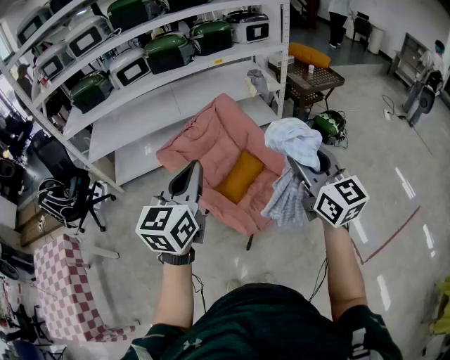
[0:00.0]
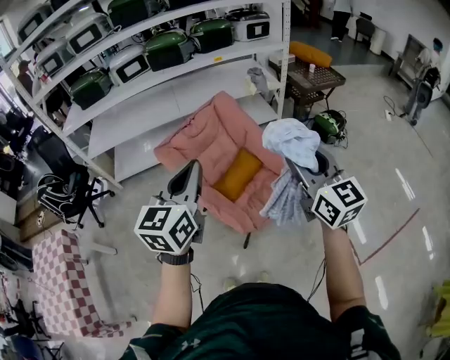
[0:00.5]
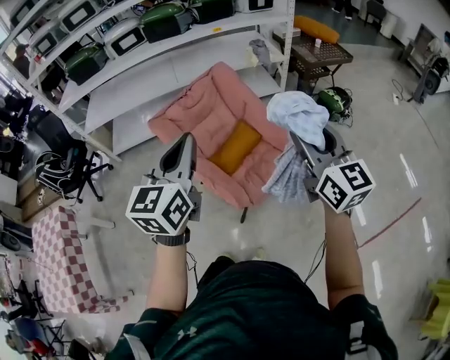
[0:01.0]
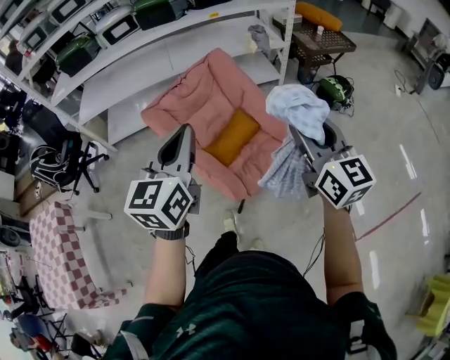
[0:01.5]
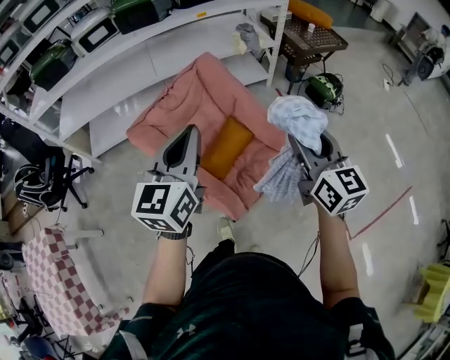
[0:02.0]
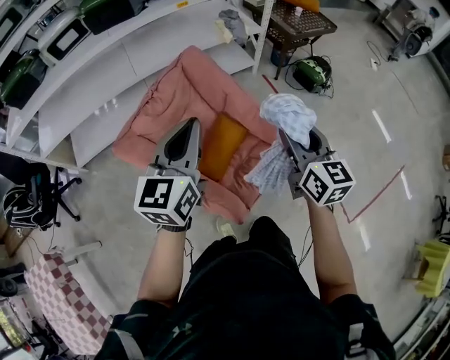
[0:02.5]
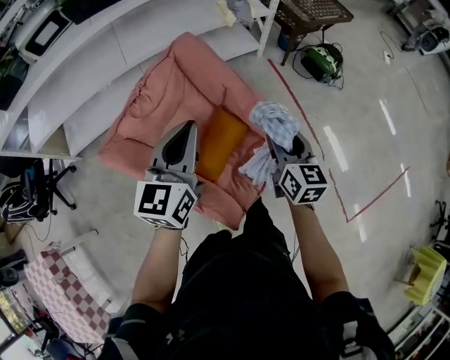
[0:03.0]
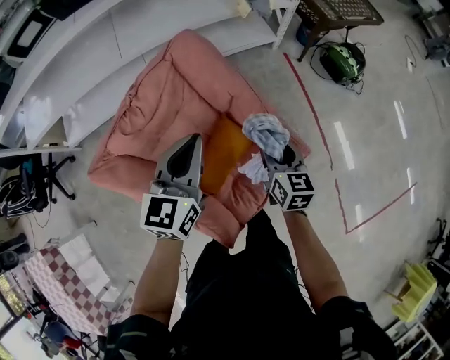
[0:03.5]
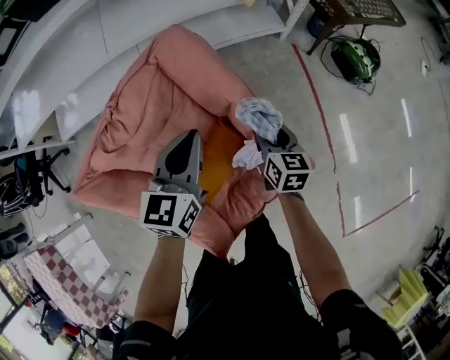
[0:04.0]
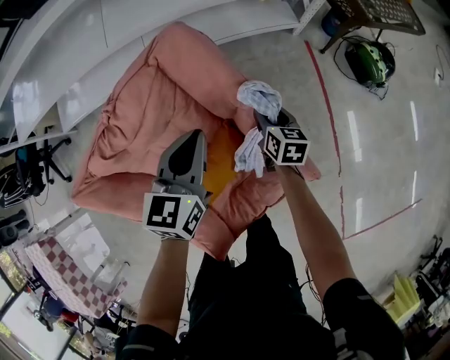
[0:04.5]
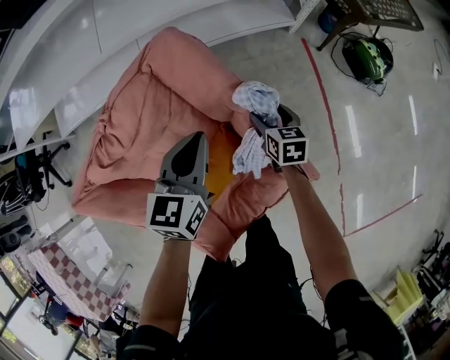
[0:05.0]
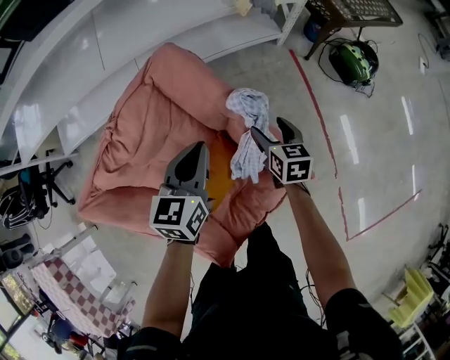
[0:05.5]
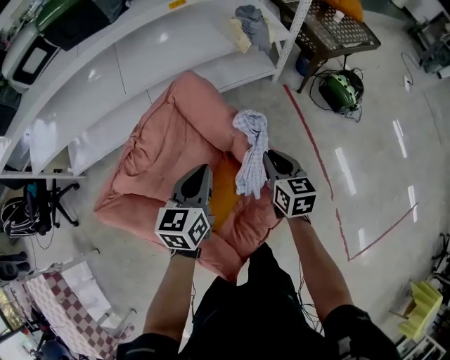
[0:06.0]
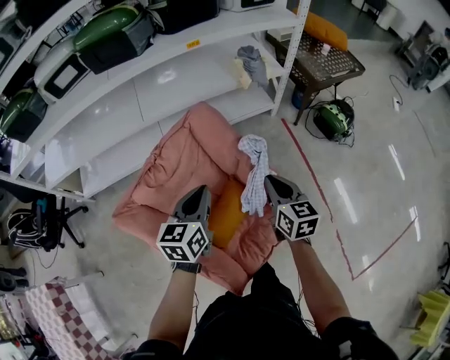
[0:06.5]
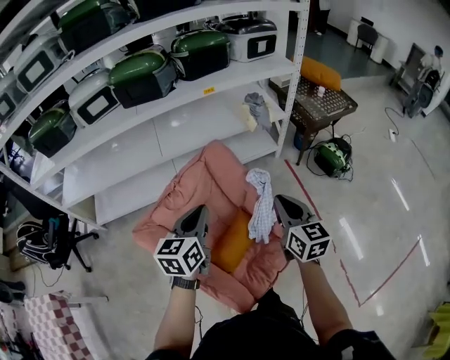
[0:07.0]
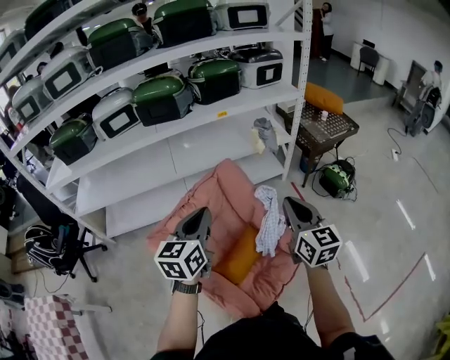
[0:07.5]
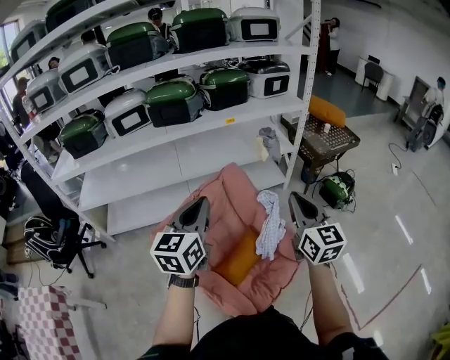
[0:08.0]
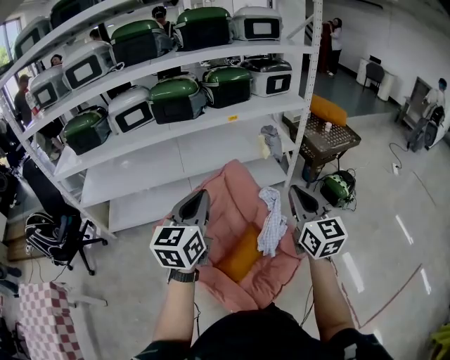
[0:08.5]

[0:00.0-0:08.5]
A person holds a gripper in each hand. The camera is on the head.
0:00.0 to 0:02.0: Both grippers travel together forward and downward, roughly 15 cm.
0:02.0 to 0:04.0: The left gripper goes approximately 50 cm forward and downward. The right gripper goes about 60 cm downward and forward, and changes its angle by roughly 30 degrees.
0:04.0 to 0:06.5: The right gripper travels upward and backward by approximately 20 cm, and closes up. The left gripper heads backward, upward and to the left, covering about 15 cm.
0:06.5 to 0:08.5: Both grippers travel together upward and backward, approximately 30 cm. The left gripper rotates about 20 degrees, while the right gripper rotates approximately 30 degrees.

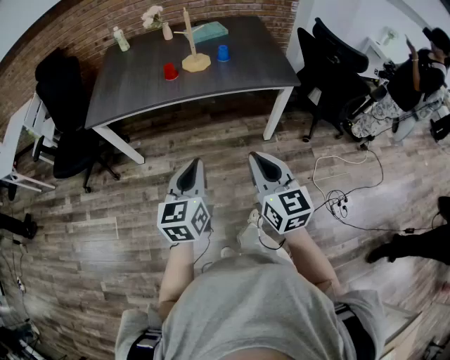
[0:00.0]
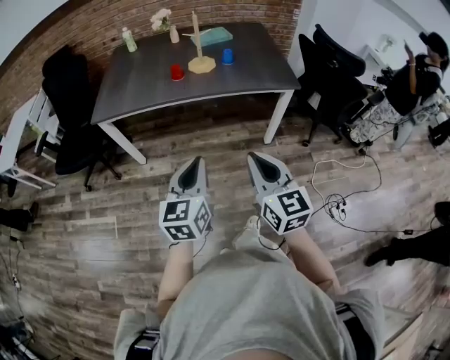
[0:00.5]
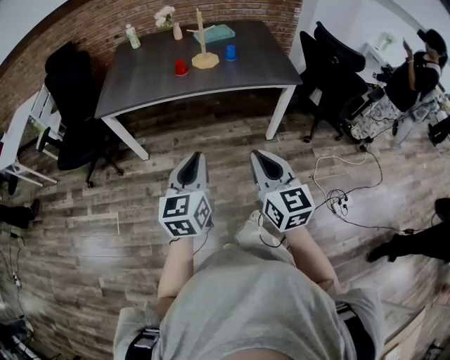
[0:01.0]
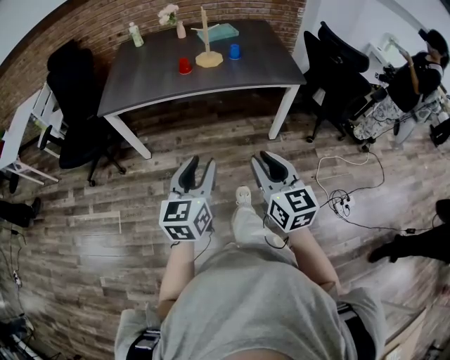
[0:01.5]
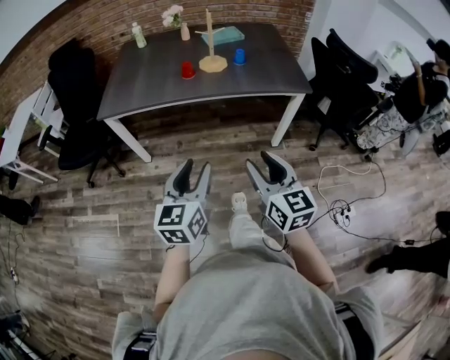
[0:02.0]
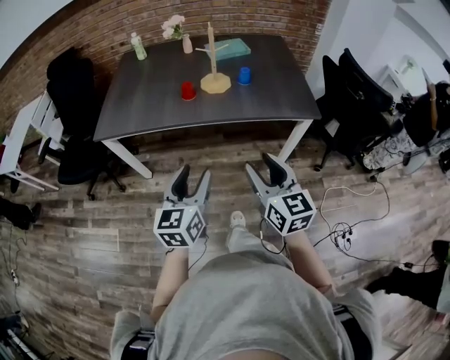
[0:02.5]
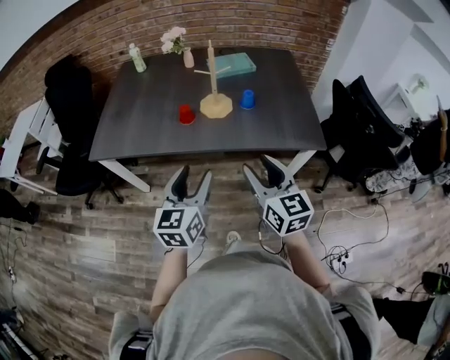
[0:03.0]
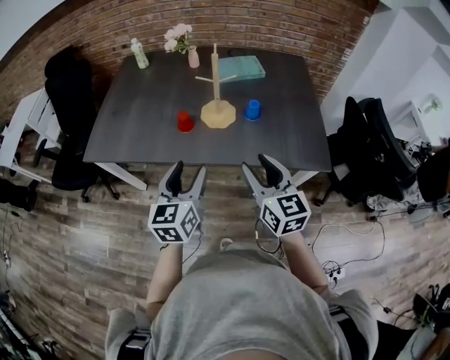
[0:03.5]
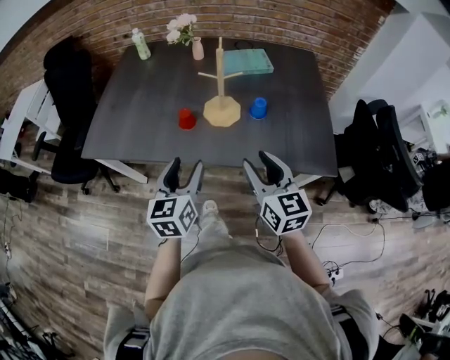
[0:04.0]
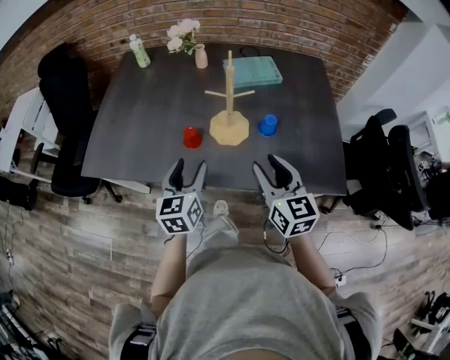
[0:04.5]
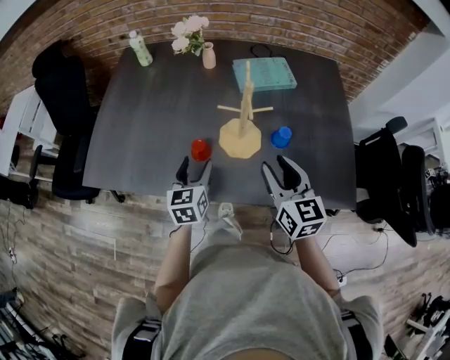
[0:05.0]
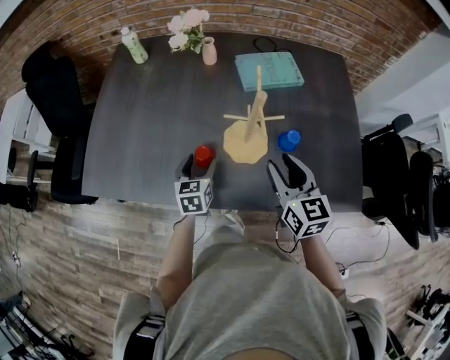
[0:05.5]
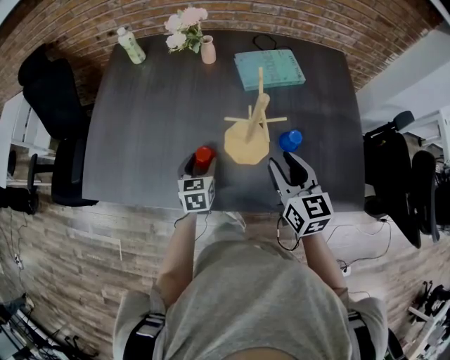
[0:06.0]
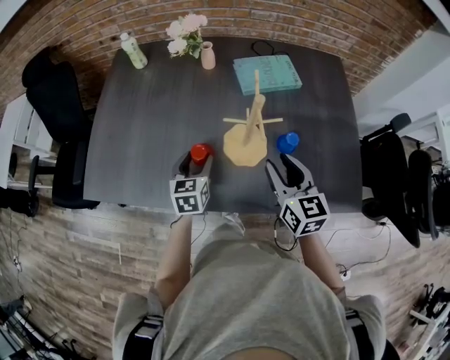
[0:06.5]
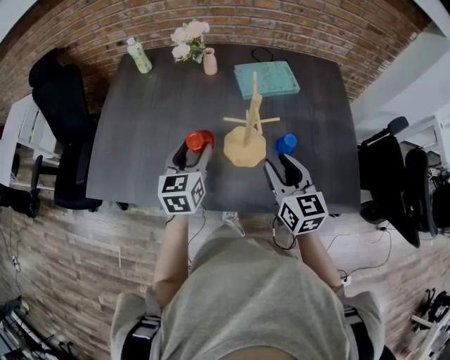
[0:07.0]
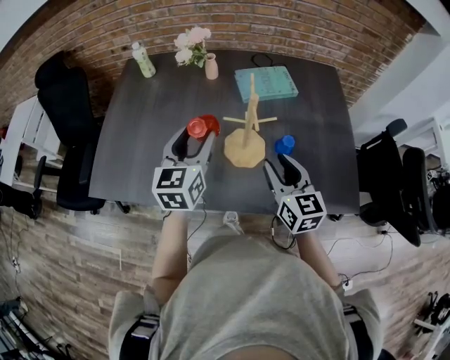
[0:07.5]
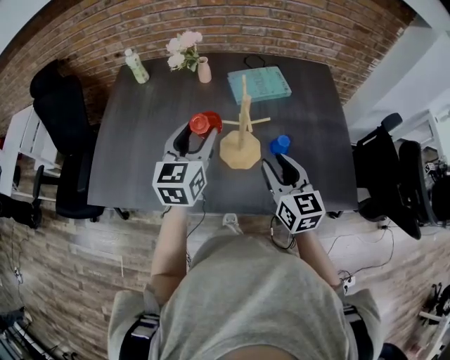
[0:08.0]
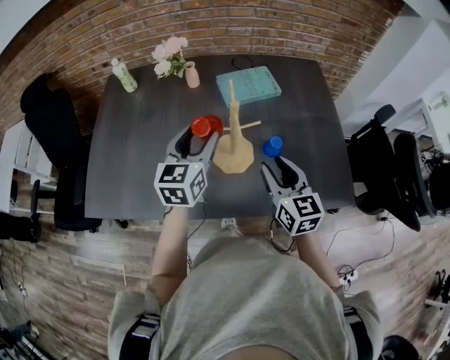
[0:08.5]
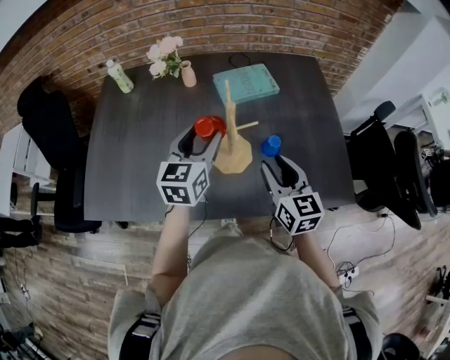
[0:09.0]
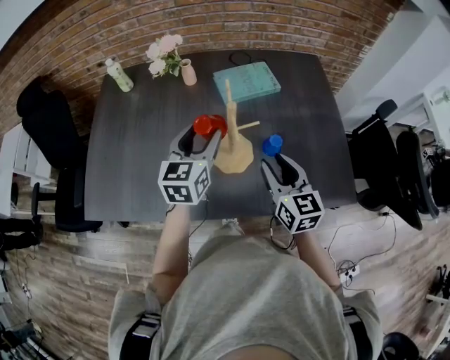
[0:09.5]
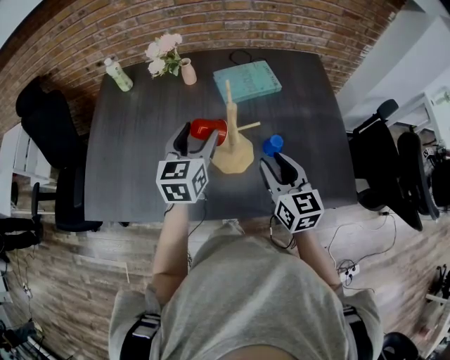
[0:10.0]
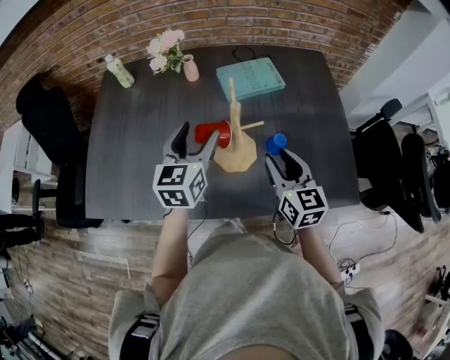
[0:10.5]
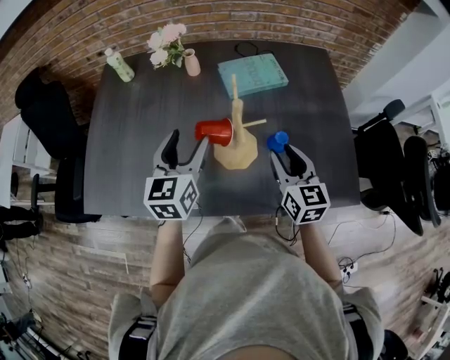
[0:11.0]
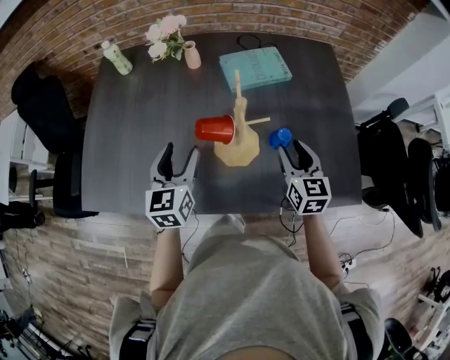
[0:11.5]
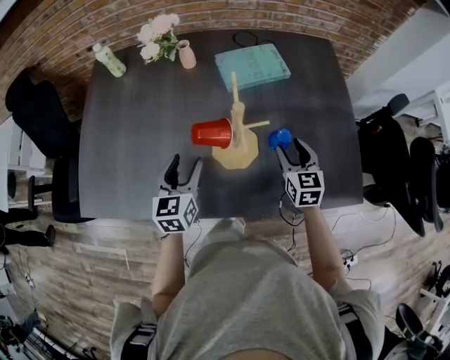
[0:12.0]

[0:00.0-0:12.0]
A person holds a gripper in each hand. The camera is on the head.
0:00.0 to 0:02.0: The left gripper goes roughly 5 cm to the left, and opens its fingers, while the right gripper opens up.
0:02.0 to 0:04.0: The pair of grippers is taken forward, about 40 cm.
0:04.0 to 0:06.0: The left gripper heads forward and downward, covering approximately 35 cm, and changes its angle by approximately 20 degrees. Meanwhile the right gripper is displaced forward by some 20 cm.
0:06.0 to 0:08.0: The left gripper moves upward, some 25 cm, and changes its angle by approximately 30 degrees.
0:08.0 to 0:10.0: The left gripper shifts by roughly 5 cm.
0:10.0 to 0:12.0: The left gripper moves downward and to the left, about 15 cm, while the right gripper travels downward, forward and to the right by roughly 15 cm.

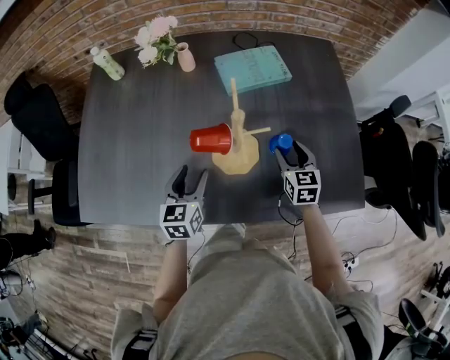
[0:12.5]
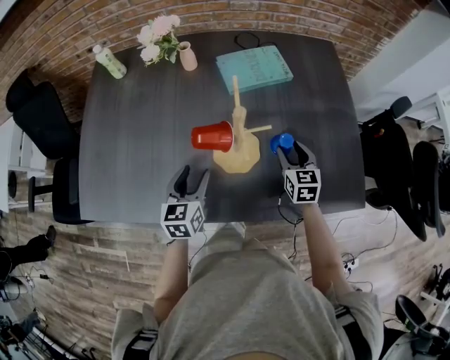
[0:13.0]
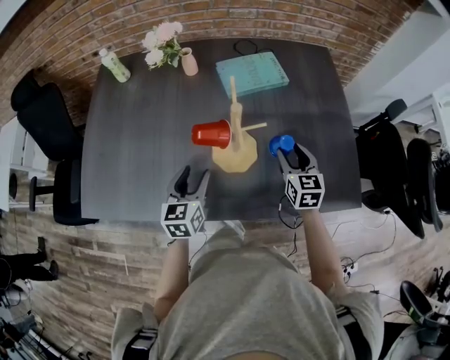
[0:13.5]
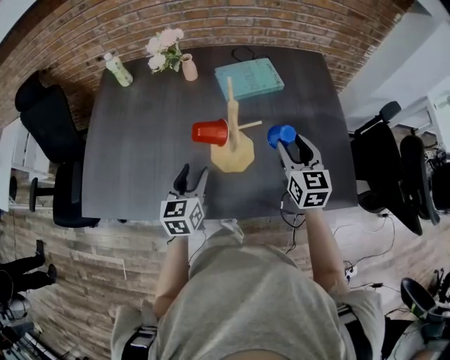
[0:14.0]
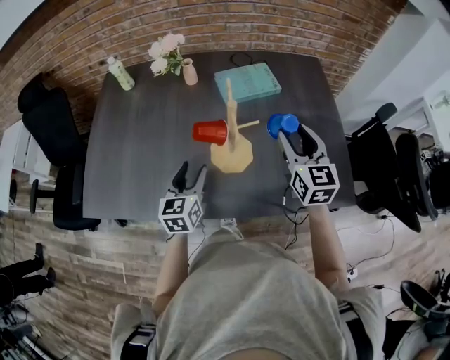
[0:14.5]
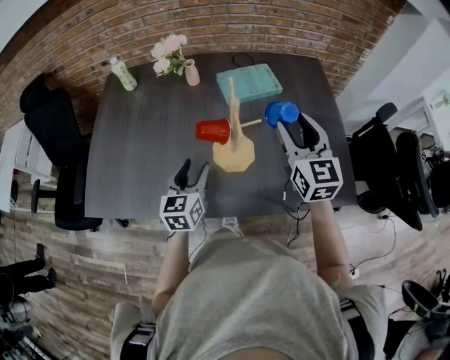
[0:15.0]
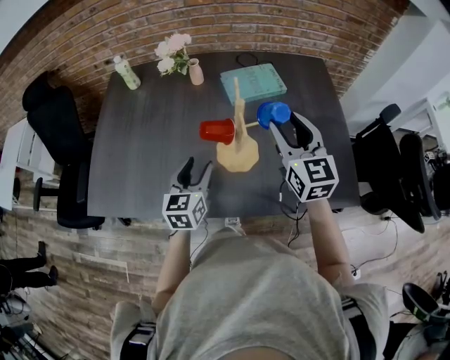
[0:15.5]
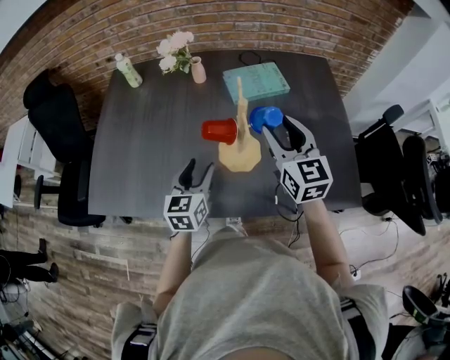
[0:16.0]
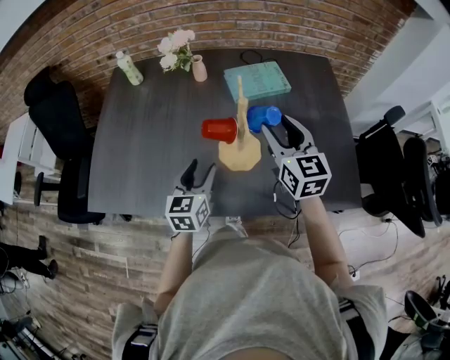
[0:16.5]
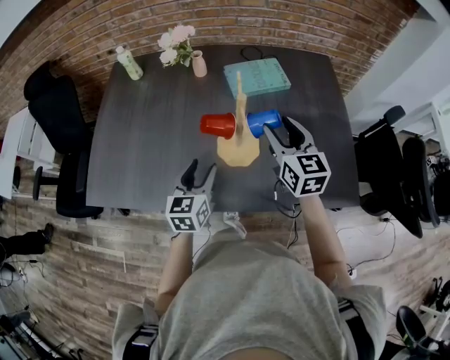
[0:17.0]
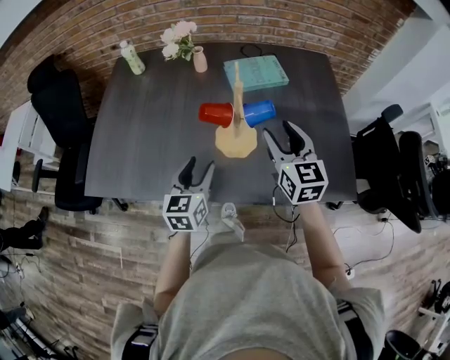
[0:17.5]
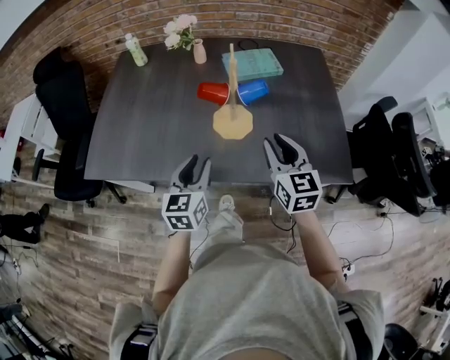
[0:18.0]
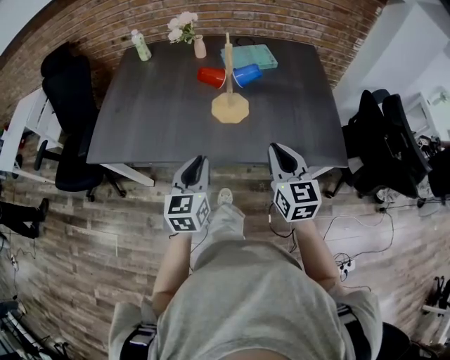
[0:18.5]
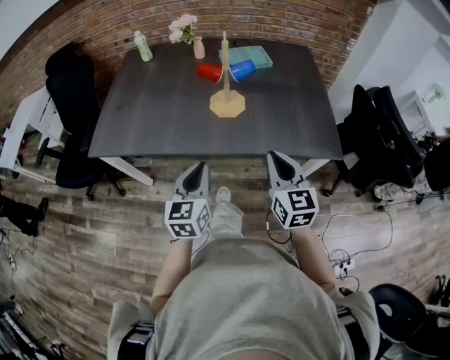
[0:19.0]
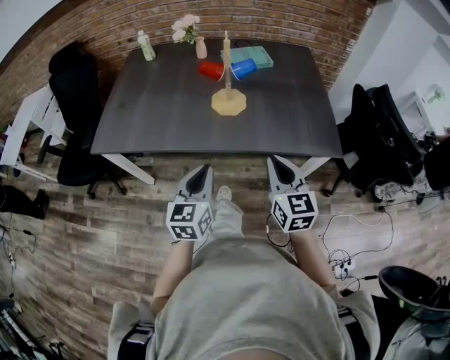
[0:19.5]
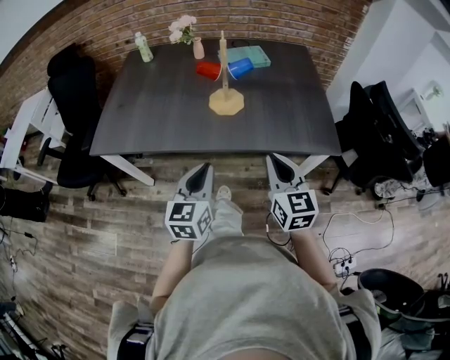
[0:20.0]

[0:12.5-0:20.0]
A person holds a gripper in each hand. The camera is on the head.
0:12.5 to 0:14.5: The left gripper moves upward, some 5 cm. Meanwhile the right gripper travels upward by approximately 20 cm, and rotates some 20 degrees.
0:14.5 to 0:16.5: The right gripper shifts about 5 cm to the left.
0:16.5 to 0:18.0: The two grippers go approximately 15 cm backward. The right gripper closes.
0:18.0 to 0:20.0: The grippers both shift backward by some 20 cm. The right gripper closes its fingers. The left gripper closes its fingers.
